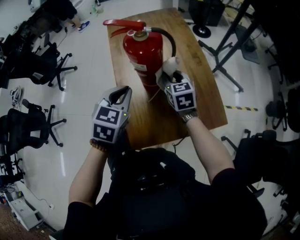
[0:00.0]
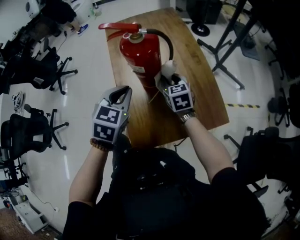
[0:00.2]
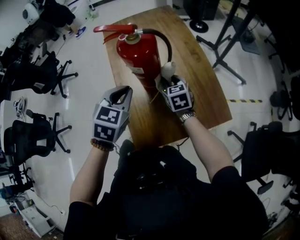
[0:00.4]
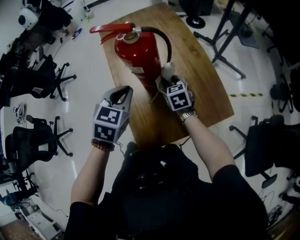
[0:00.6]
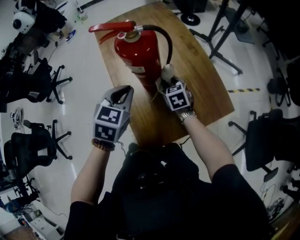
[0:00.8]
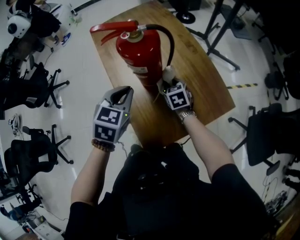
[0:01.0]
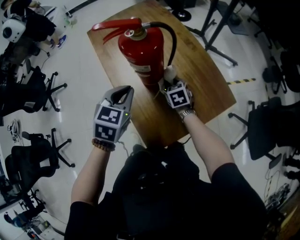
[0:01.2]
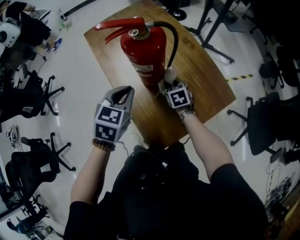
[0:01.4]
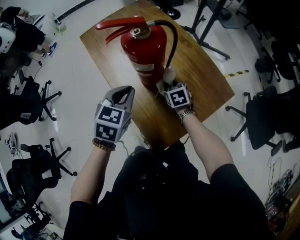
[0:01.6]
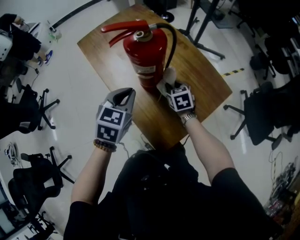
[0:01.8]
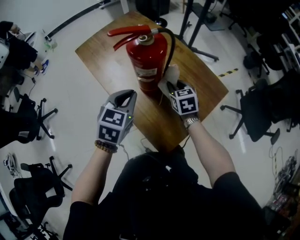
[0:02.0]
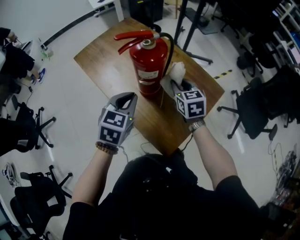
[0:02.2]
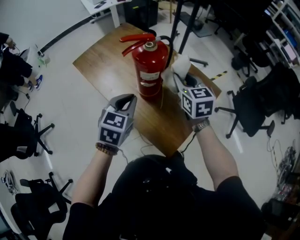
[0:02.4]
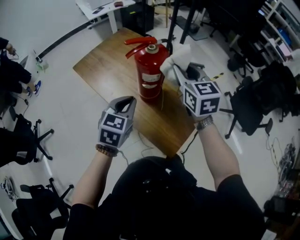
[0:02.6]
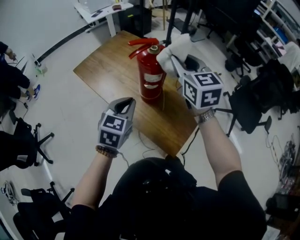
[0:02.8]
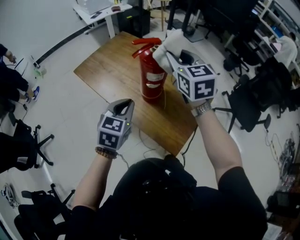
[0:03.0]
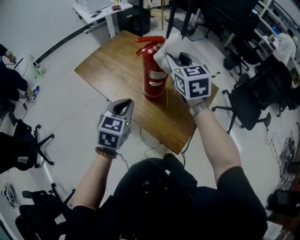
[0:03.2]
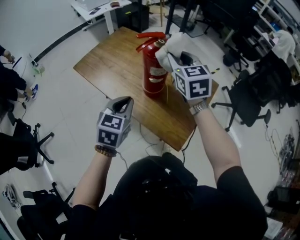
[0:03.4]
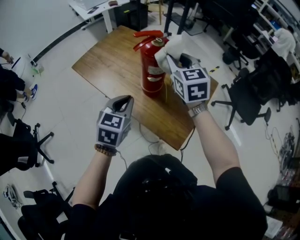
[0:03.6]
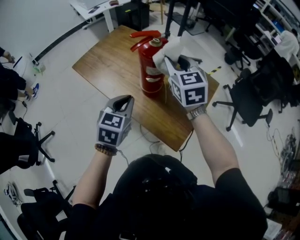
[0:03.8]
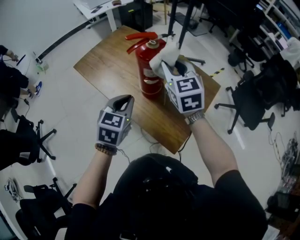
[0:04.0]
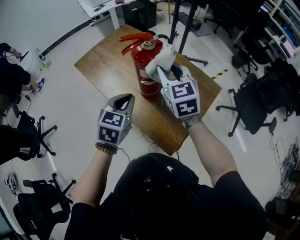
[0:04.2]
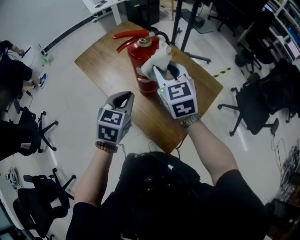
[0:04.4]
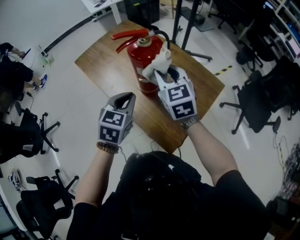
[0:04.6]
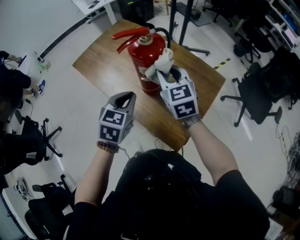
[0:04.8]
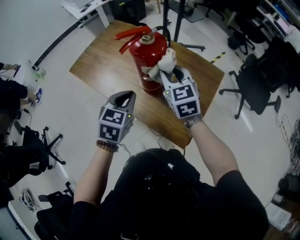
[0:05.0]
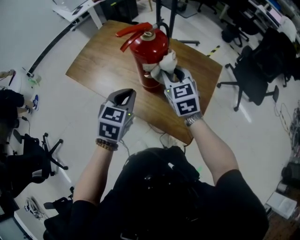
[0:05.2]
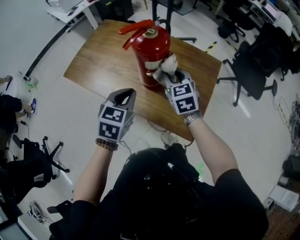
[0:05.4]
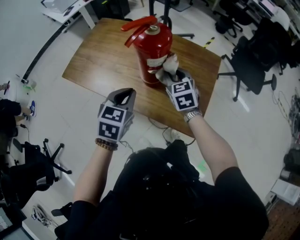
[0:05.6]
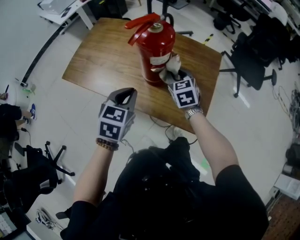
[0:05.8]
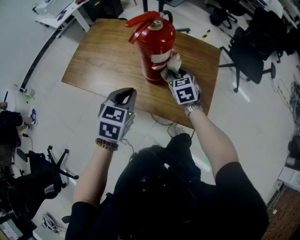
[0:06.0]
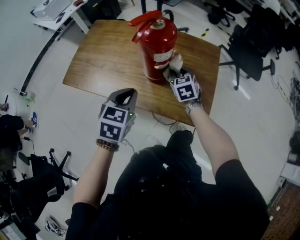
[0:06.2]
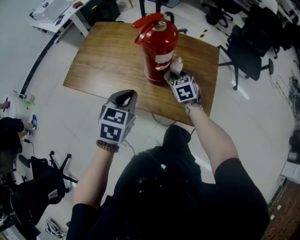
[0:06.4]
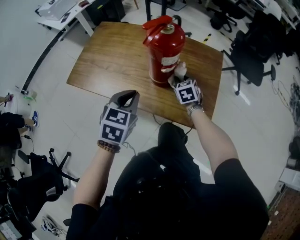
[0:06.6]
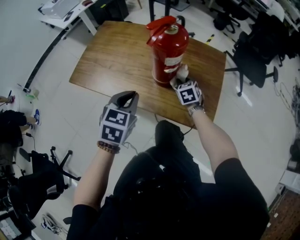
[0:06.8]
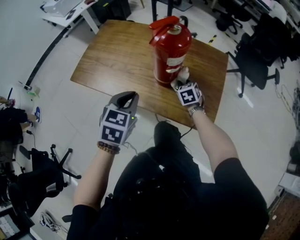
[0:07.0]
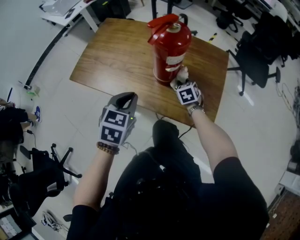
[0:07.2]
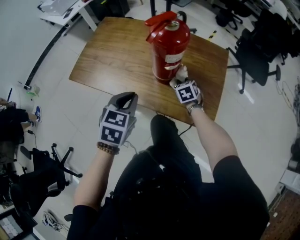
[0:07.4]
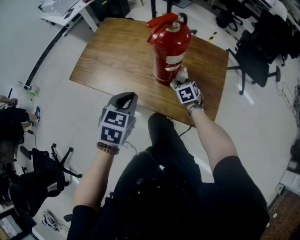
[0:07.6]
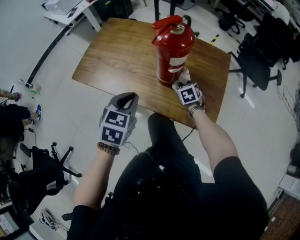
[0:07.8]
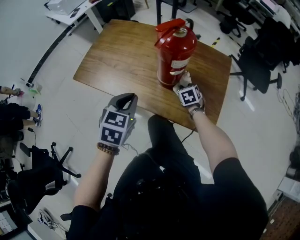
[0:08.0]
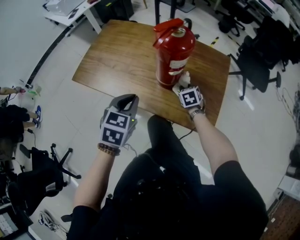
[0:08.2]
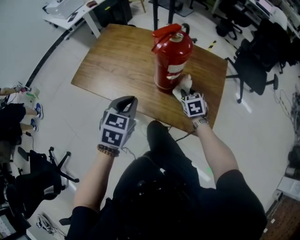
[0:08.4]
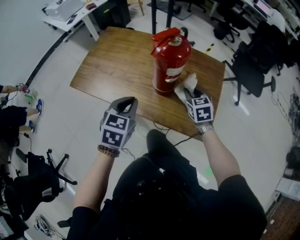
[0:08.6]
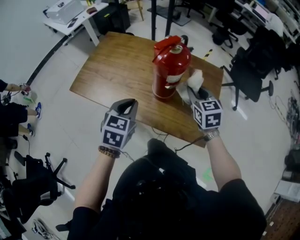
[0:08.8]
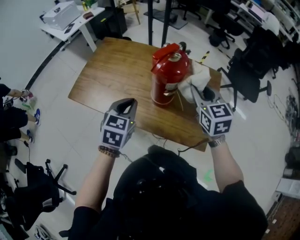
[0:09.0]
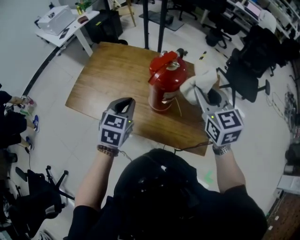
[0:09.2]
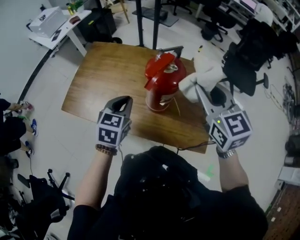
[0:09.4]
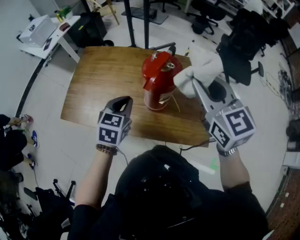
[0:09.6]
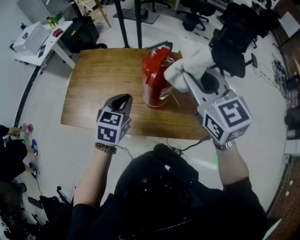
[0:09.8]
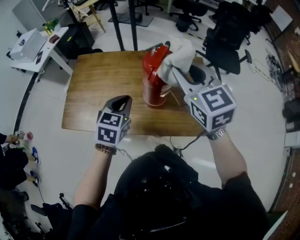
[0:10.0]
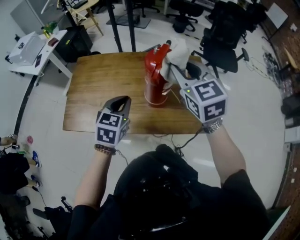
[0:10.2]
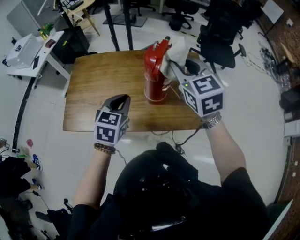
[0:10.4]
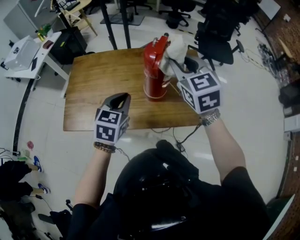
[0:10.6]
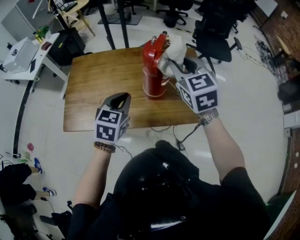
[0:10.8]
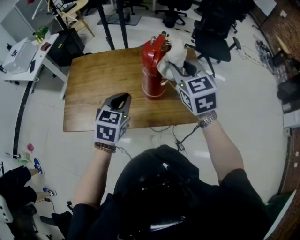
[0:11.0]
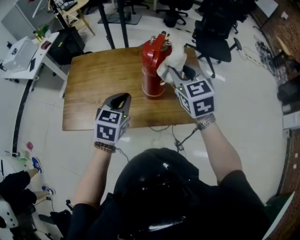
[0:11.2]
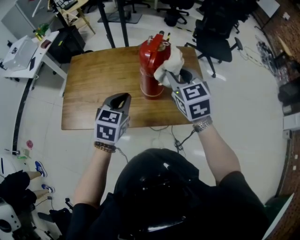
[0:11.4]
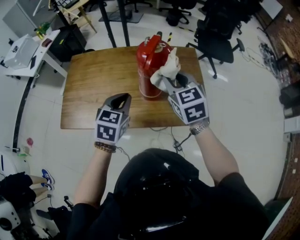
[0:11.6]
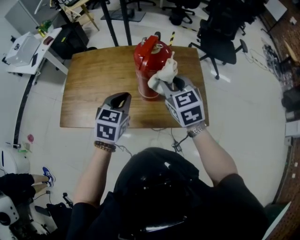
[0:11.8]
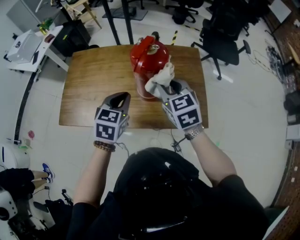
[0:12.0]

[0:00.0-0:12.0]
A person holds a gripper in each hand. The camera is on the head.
0:00.0 to 0:01.6: The right gripper travels downward by about 15 cm, and changes its angle by roughly 30 degrees, while the left gripper shifts by about 5 cm, and changes its angle by about 20 degrees.
0:01.6 to 0:03.0: The left gripper heads to the left and upward, covering approximately 10 cm, while the right gripper moves upward, some 40 cm, and angles its fingers upward, by approximately 30 degrees.
0:03.0 to 0:04.4: The right gripper goes about 10 cm downward. The left gripper ends up approximately 5 cm from where it was.
0:04.4 to 0:06.0: The left gripper changes place by about 10 cm, and swivels some 20 degrees. Meanwhile the right gripper heads downward, covering approximately 20 cm, and rotates about 30 degrees.
0:06.0 to 0:07.6: The right gripper heads downward, covering about 10 cm.
0:07.6 to 0:09.0: The left gripper is displaced forward by some 5 cm. The right gripper moves upward, approximately 30 cm, and changes its angle by approximately 30 degrees.
0:09.0 to 0:10.4: The left gripper ends up roughly 5 cm from where it was; the right gripper moves upward and to the left, approximately 10 cm.
0:10.4 to 0:12.0: The right gripper is displaced downward by some 10 cm. The left gripper changes place by about 5 cm.

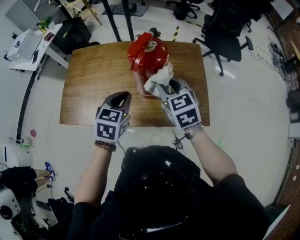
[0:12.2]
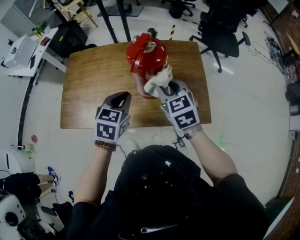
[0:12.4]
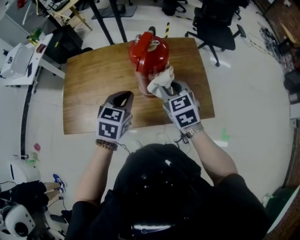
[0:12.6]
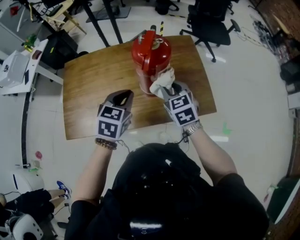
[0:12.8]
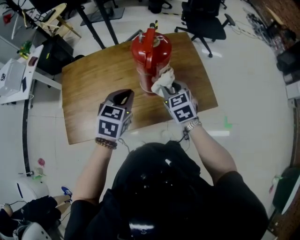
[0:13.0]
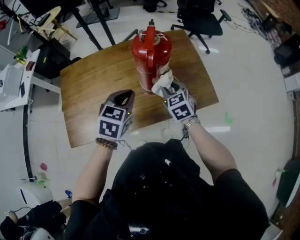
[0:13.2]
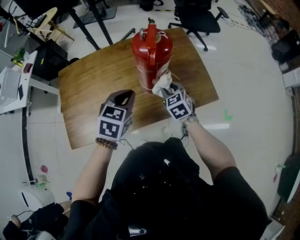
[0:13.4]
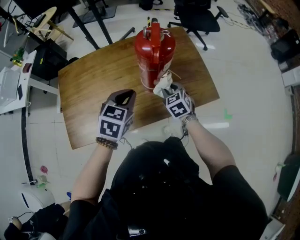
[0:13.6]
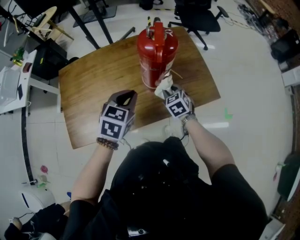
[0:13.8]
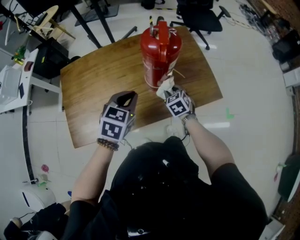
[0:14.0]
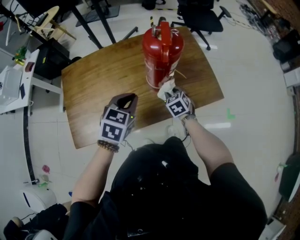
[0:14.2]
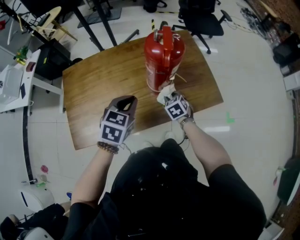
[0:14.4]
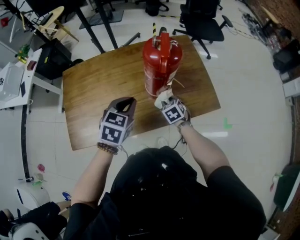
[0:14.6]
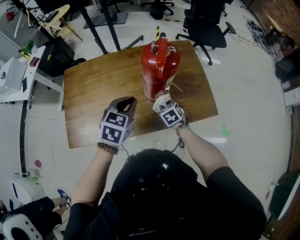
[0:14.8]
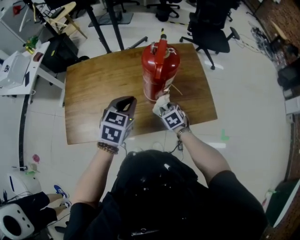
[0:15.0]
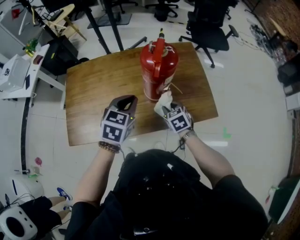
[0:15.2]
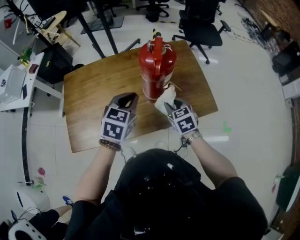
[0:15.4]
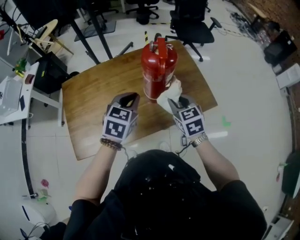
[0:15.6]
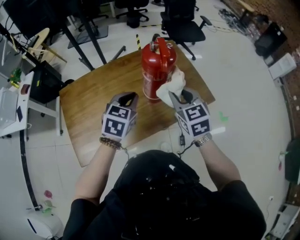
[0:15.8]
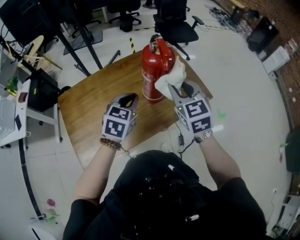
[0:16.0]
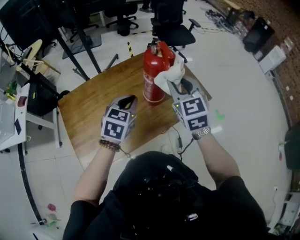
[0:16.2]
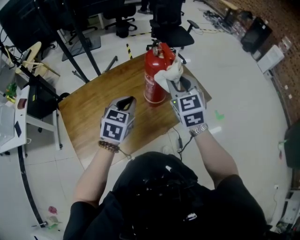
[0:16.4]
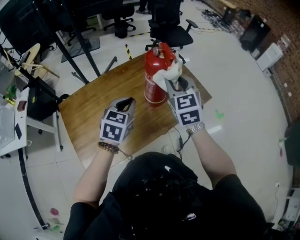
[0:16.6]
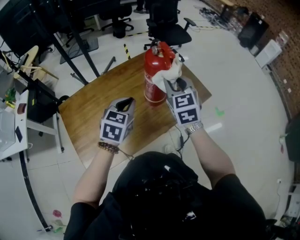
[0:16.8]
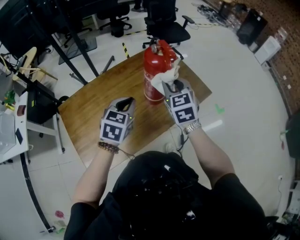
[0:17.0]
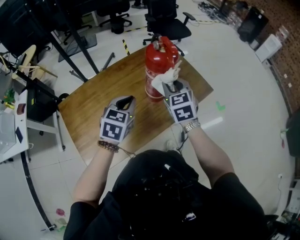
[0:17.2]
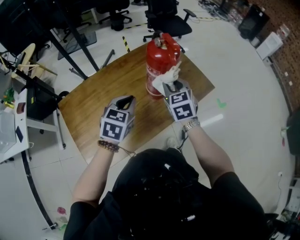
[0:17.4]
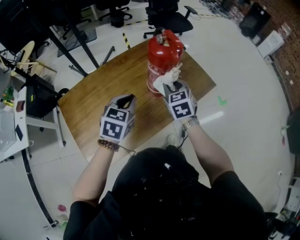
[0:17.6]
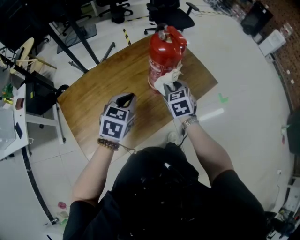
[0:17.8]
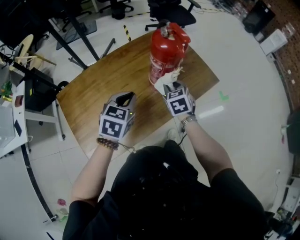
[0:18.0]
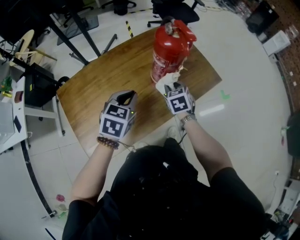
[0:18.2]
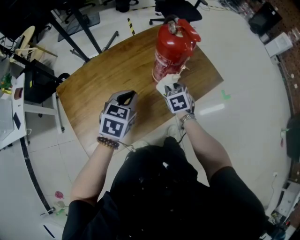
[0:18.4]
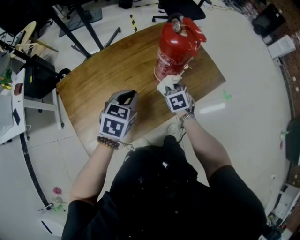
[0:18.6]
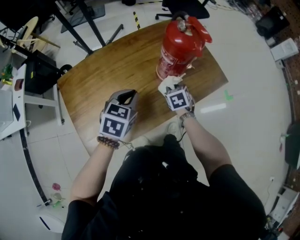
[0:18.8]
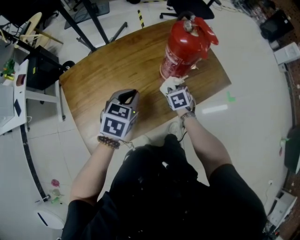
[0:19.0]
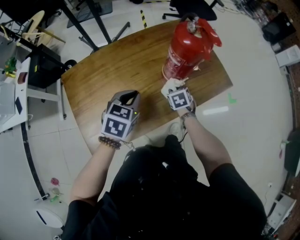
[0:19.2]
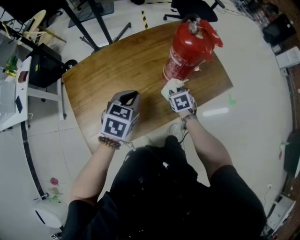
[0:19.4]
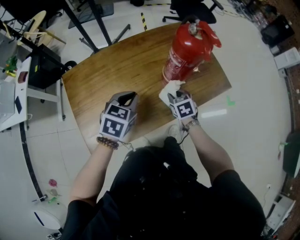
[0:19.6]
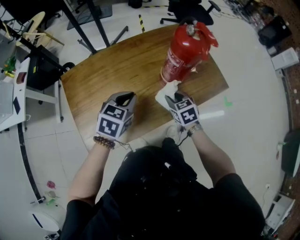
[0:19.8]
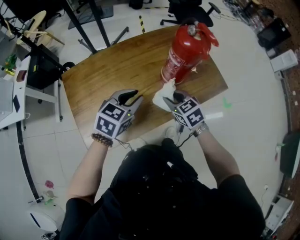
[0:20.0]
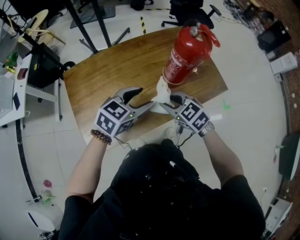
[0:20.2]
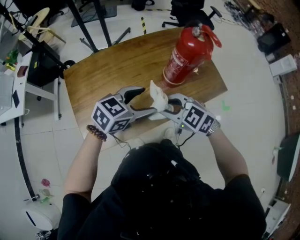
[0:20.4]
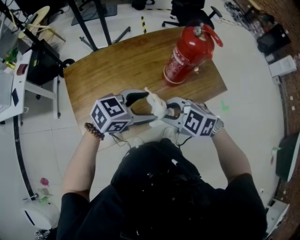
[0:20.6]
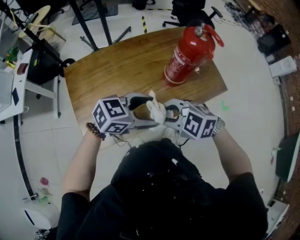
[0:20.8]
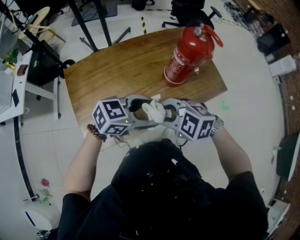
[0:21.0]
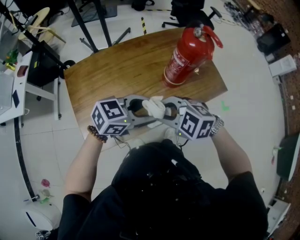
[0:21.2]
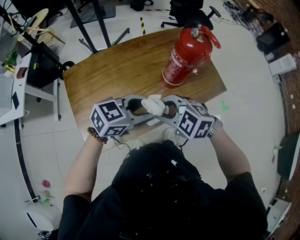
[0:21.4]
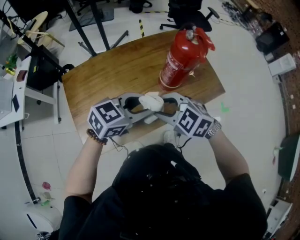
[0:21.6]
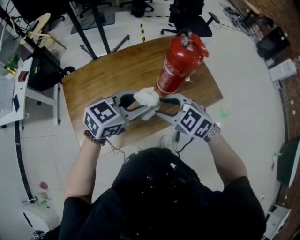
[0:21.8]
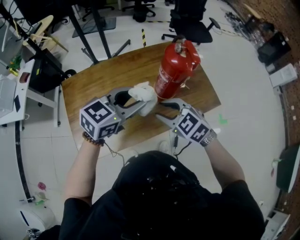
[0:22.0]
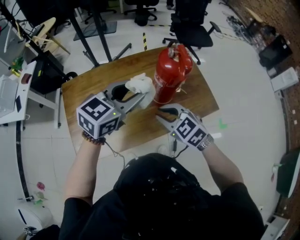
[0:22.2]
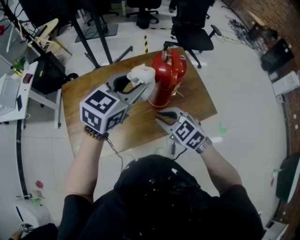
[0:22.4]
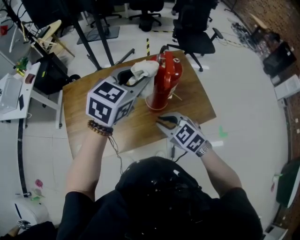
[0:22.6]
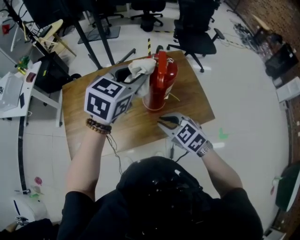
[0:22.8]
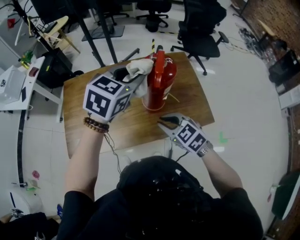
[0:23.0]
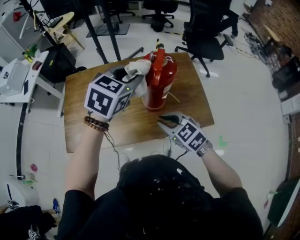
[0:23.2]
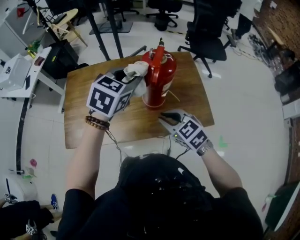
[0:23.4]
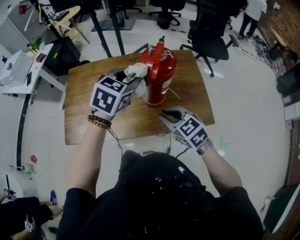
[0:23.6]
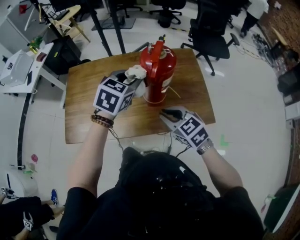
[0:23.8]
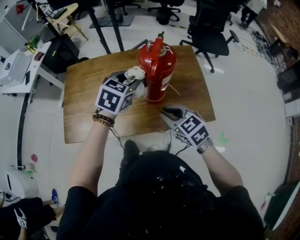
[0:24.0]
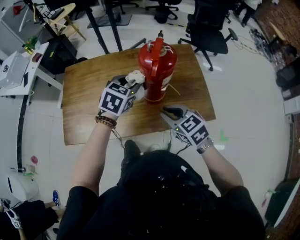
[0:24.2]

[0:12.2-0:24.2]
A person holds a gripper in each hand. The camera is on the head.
0:12.2 to 0:13.8: The left gripper turns by approximately 20 degrees; the right gripper goes roughly 20 cm downward, and changes its angle by roughly 30 degrees.
0:13.8 to 0:15.2: The grippers make only small movements.
0:15.2 to 0:16.6: The right gripper moves upward, about 25 cm, and tips its fingers upward by approximately 30 degrees; the left gripper moves roughly 5 cm, and rotates roughly 20 degrees.
0:16.6 to 0:18.2: The left gripper heads downward, covering some 5 cm. Meanwhile the right gripper moves downward, some 25 cm, and swivels about 30 degrees.
0:18.2 to 0:19.8: The right gripper shifts approximately 5 cm backward, and travels downward and back again, some 10 cm each way, while the left gripper moves about 5 cm.
0:19.8 to 0:21.2: The right gripper ends up about 20 cm from where it was, and twists approximately 50 degrees counterclockwise, seen from behind. The left gripper shifts by some 15 cm, turns by about 40 degrees, and opens.
0:21.2 to 0:22.6: The left gripper shifts by approximately 25 cm, and rotates approximately 40 degrees; the right gripper moves some 15 cm, and turns by about 20 degrees.
0:22.6 to 0:24.2: The left gripper moves downward, approximately 15 cm, and swivels some 20 degrees, while the right gripper travels to the right by approximately 5 cm.
